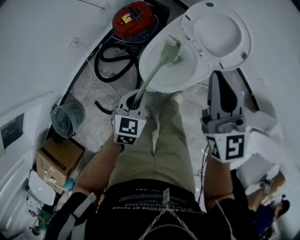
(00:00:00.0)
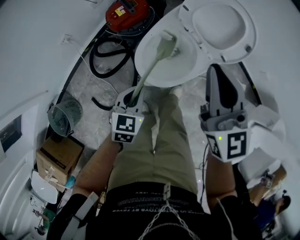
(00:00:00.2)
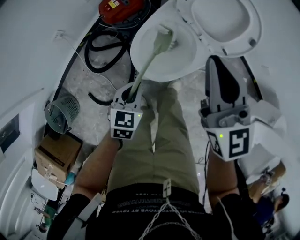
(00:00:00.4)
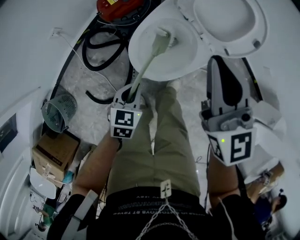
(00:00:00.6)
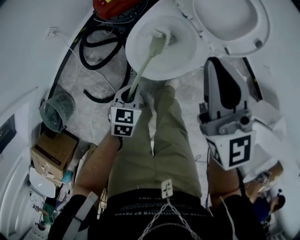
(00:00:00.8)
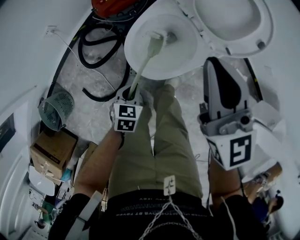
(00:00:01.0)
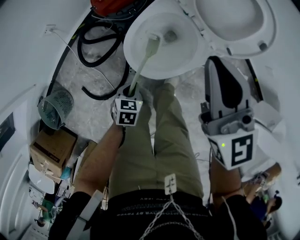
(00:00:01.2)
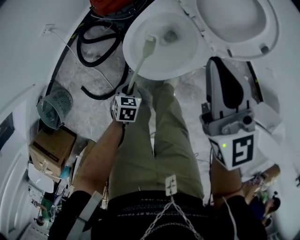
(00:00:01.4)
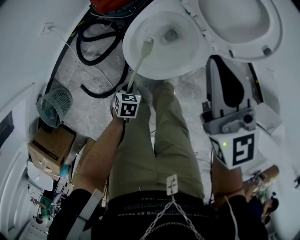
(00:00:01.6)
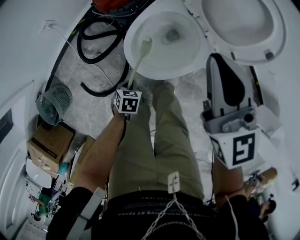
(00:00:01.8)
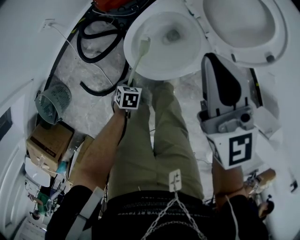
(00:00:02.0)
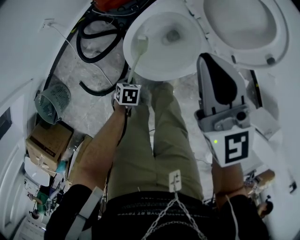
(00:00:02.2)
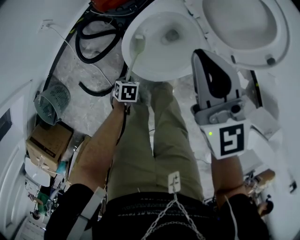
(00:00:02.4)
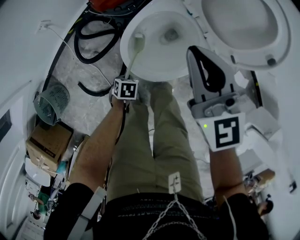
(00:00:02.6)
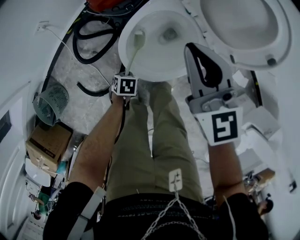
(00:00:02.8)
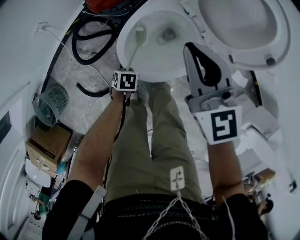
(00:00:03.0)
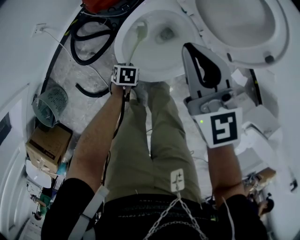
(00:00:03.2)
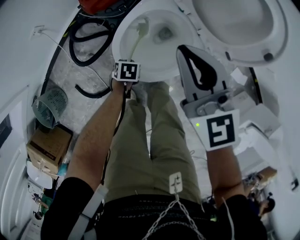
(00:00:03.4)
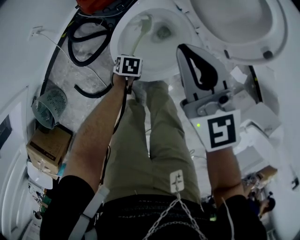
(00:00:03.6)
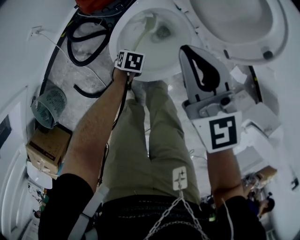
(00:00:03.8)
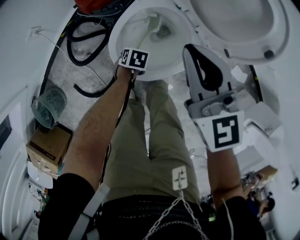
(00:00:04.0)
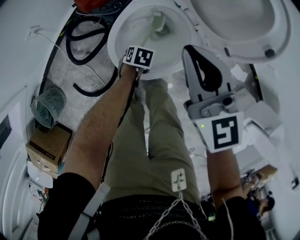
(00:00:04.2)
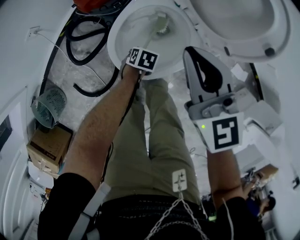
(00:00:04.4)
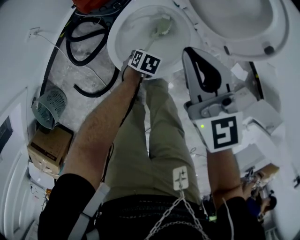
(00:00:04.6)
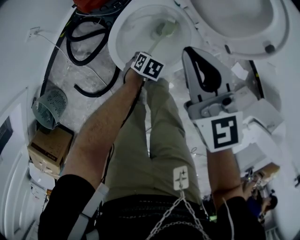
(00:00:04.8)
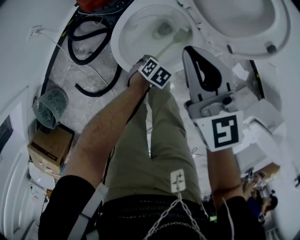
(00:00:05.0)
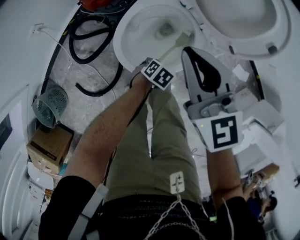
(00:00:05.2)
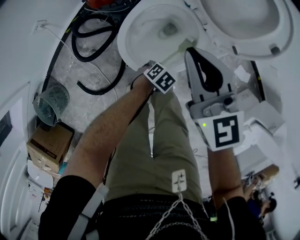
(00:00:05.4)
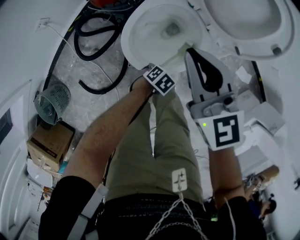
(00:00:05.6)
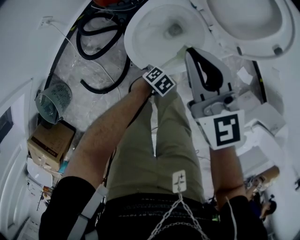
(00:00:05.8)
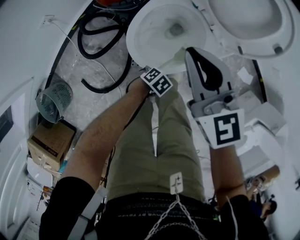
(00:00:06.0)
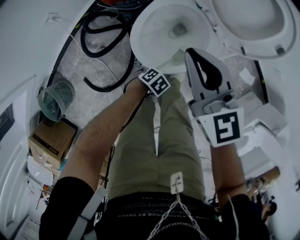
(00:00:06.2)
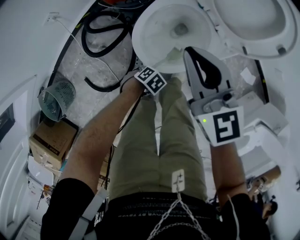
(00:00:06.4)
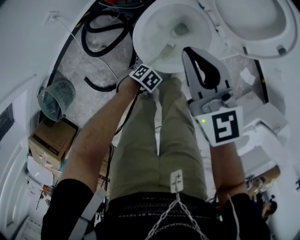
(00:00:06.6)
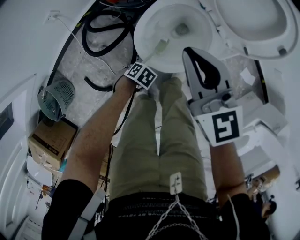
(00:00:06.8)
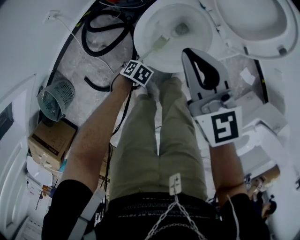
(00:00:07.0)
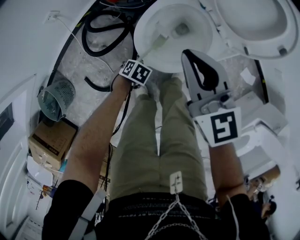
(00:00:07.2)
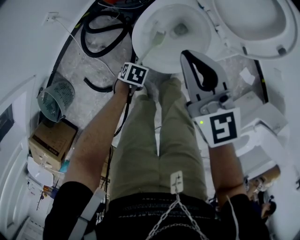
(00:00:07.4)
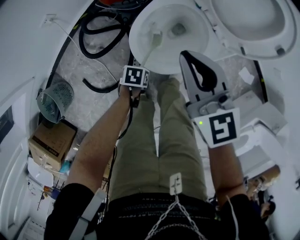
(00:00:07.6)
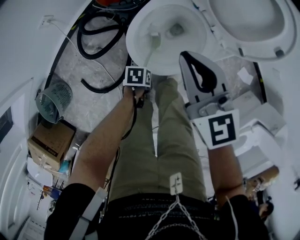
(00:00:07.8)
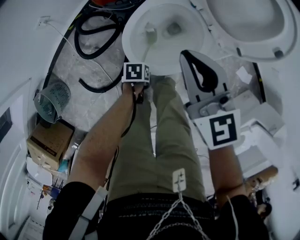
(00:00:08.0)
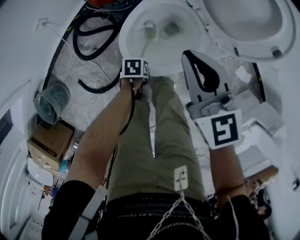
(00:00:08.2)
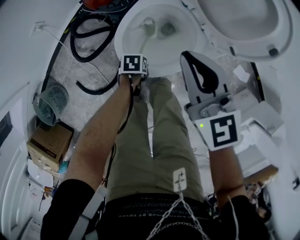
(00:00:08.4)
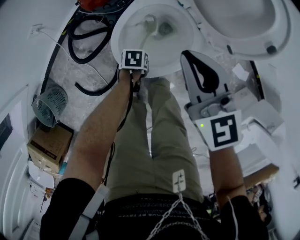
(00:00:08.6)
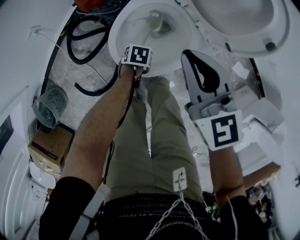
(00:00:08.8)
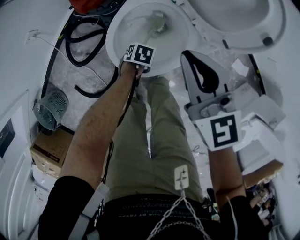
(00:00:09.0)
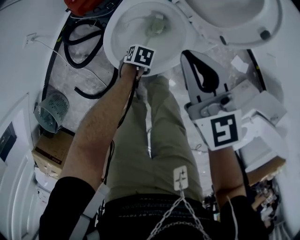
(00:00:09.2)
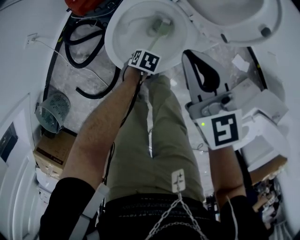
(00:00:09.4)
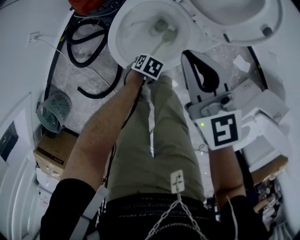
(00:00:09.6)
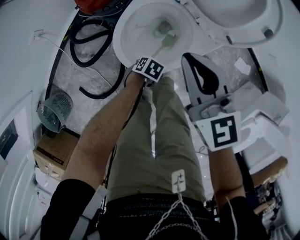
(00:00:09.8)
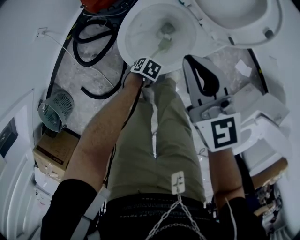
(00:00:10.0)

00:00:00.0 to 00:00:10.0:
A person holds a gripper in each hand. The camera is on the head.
00:00:00.0 to 00:00:01.4: The right gripper travels downward by roughly 10 cm; the left gripper is displaced downward by roughly 25 cm, and swivels some 30 degrees.
00:00:01.4 to 00:00:02.8: The grippers both shift downward by about 10 cm. The left gripper swivels about 20 degrees.
00:00:02.8 to 00:00:04.2: The left gripper ends up about 15 cm from where it was.
00:00:04.2 to 00:00:05.8: The right gripper moves approximately 5 cm, while the left gripper shifts by some 15 cm, and rotates about 30 degrees.
00:00:05.8 to 00:00:07.2: The right gripper moves some 5 cm, while the left gripper ends up roughly 15 cm from where it was.
00:00:07.2 to 00:00:08.6: The right gripper shifts by roughly 10 cm, while the left gripper changes place by roughly 15 cm, and swivels some 30 degrees.
00:00:08.6 to 00:00:10.0: The left gripper moves approximately 5 cm, and changes its angle by some 30 degrees.

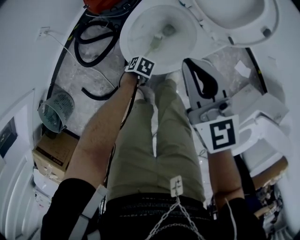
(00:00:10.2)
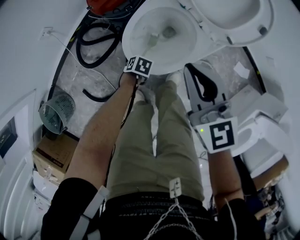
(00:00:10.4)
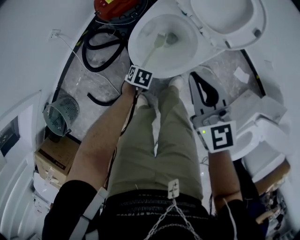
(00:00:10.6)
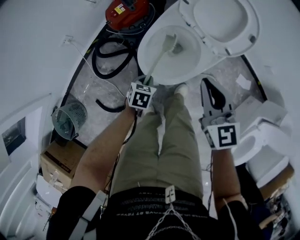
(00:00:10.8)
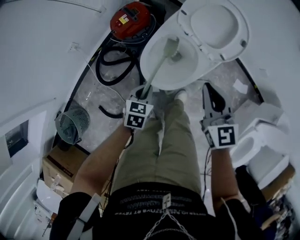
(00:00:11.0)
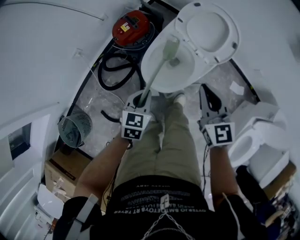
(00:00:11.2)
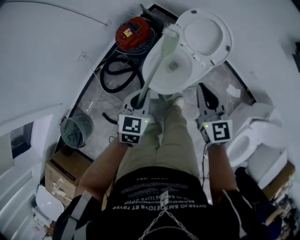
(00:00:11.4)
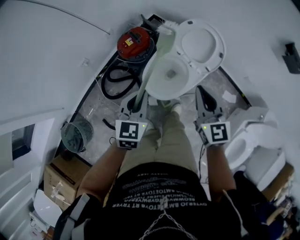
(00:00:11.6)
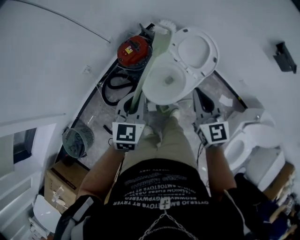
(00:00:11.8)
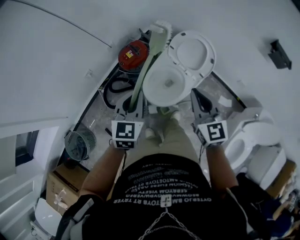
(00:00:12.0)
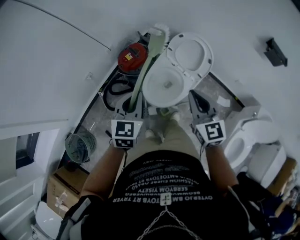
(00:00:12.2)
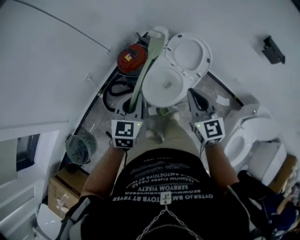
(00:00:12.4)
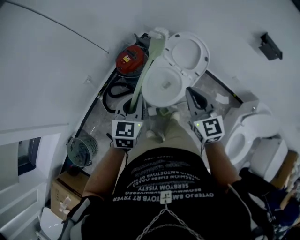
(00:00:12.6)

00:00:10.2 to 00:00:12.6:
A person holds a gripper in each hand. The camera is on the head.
00:00:10.2 to 00:00:11.4: The right gripper moves upward, some 15 cm. Meanwhile the left gripper moves upward, some 50 cm, and angles its fingers upward, by about 40 degrees.
00:00:11.4 to 00:00:12.6: Both grippers move upward, some 15 cm.

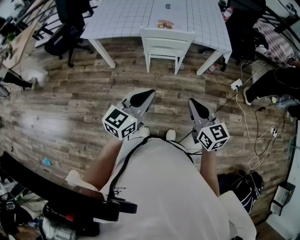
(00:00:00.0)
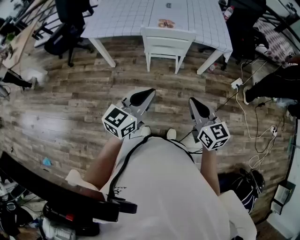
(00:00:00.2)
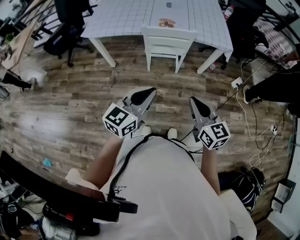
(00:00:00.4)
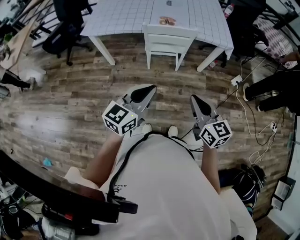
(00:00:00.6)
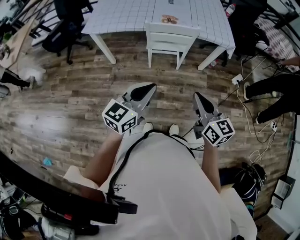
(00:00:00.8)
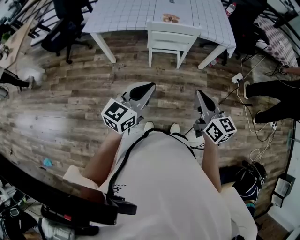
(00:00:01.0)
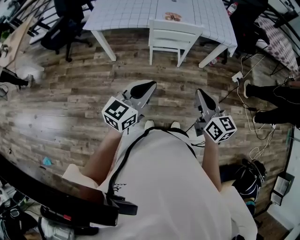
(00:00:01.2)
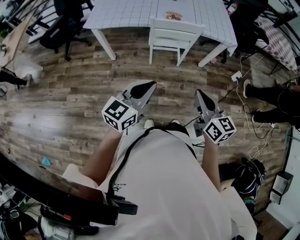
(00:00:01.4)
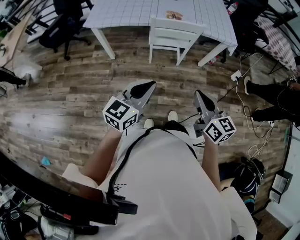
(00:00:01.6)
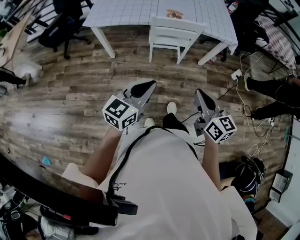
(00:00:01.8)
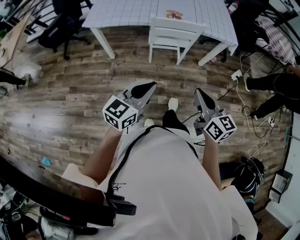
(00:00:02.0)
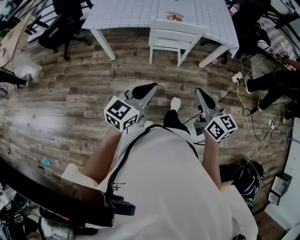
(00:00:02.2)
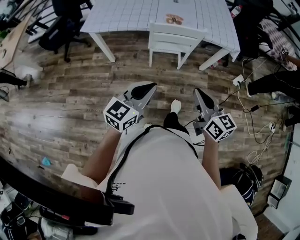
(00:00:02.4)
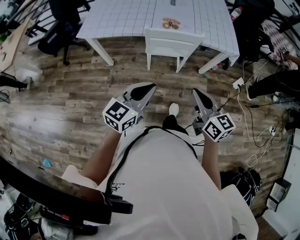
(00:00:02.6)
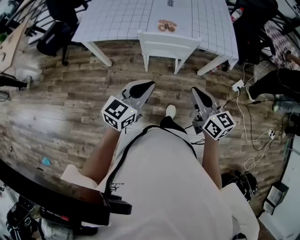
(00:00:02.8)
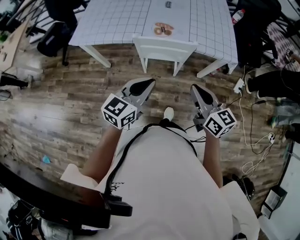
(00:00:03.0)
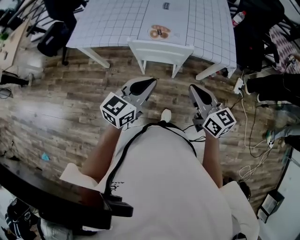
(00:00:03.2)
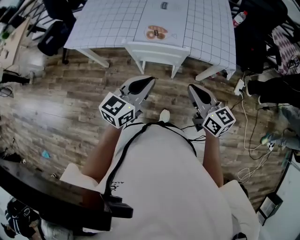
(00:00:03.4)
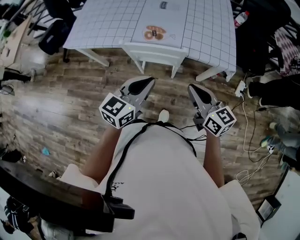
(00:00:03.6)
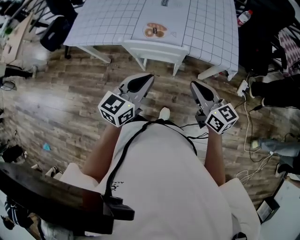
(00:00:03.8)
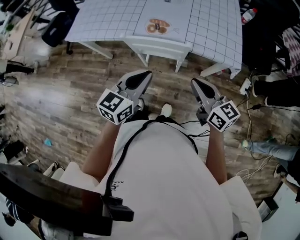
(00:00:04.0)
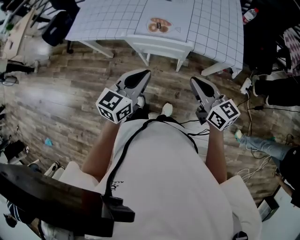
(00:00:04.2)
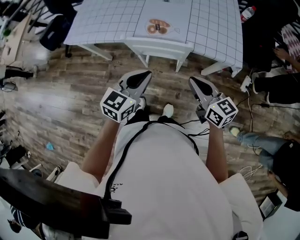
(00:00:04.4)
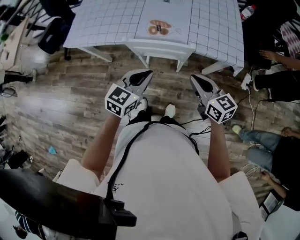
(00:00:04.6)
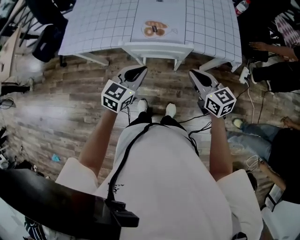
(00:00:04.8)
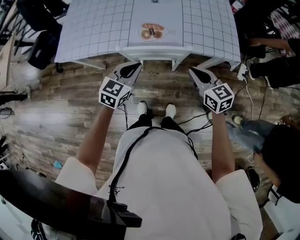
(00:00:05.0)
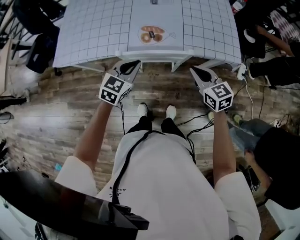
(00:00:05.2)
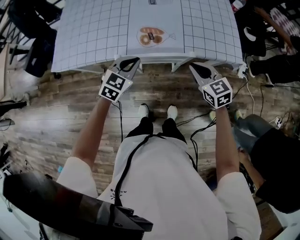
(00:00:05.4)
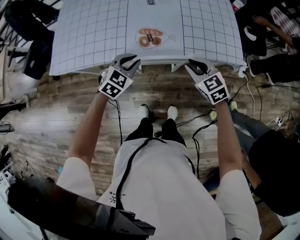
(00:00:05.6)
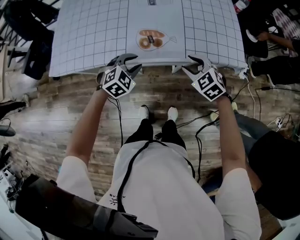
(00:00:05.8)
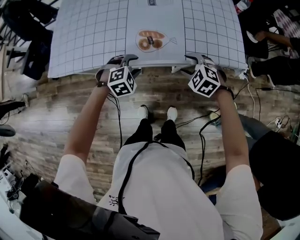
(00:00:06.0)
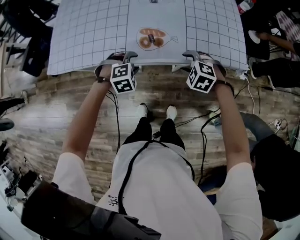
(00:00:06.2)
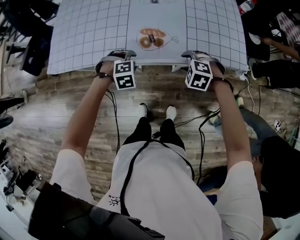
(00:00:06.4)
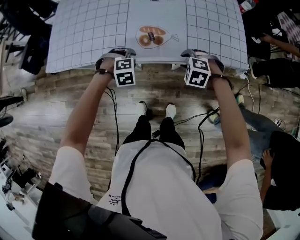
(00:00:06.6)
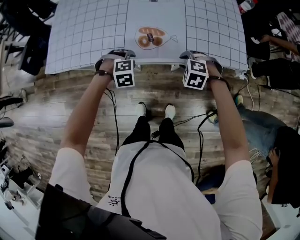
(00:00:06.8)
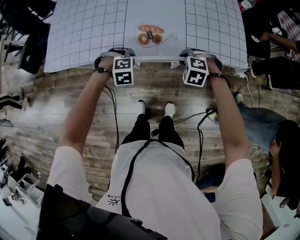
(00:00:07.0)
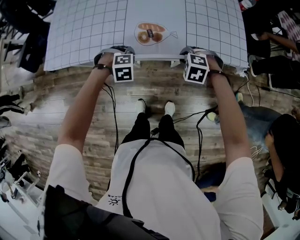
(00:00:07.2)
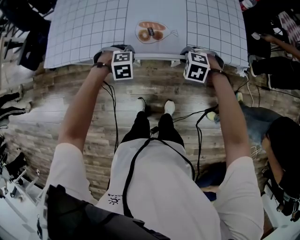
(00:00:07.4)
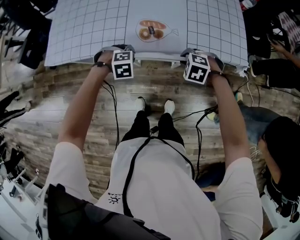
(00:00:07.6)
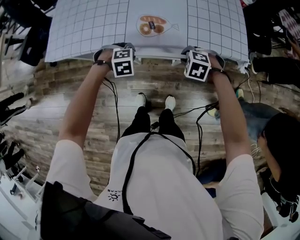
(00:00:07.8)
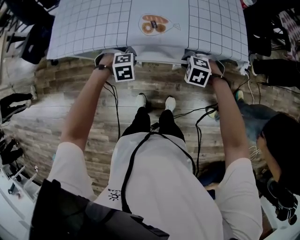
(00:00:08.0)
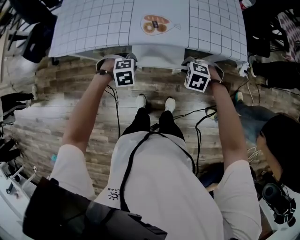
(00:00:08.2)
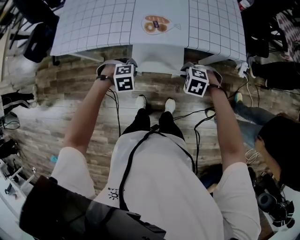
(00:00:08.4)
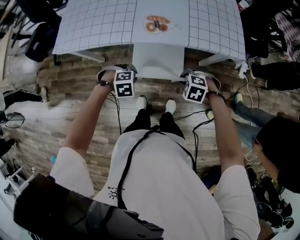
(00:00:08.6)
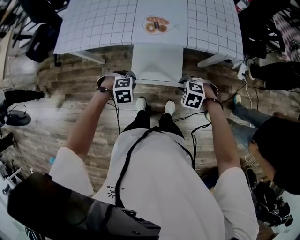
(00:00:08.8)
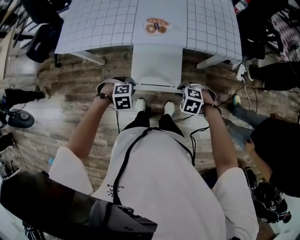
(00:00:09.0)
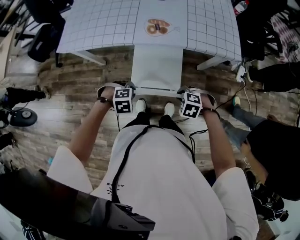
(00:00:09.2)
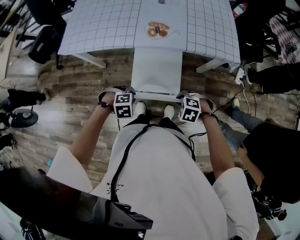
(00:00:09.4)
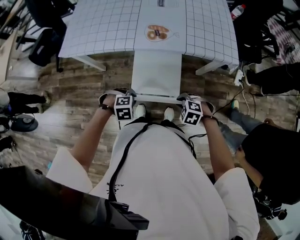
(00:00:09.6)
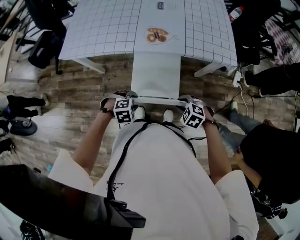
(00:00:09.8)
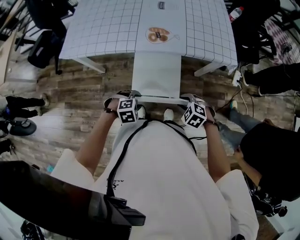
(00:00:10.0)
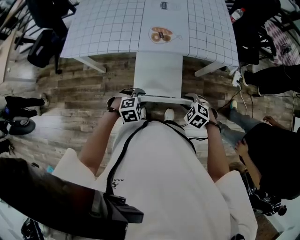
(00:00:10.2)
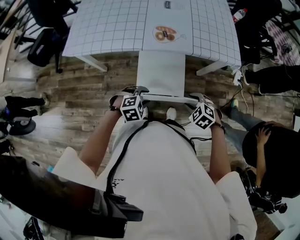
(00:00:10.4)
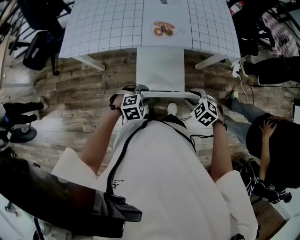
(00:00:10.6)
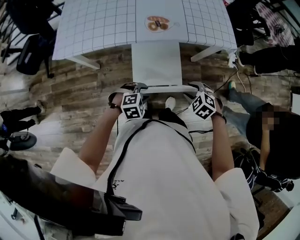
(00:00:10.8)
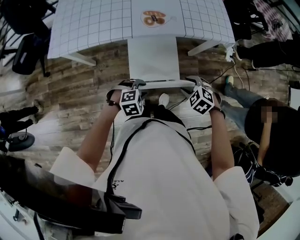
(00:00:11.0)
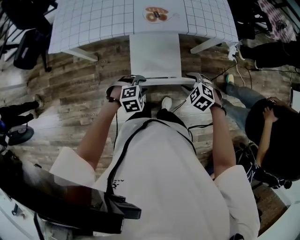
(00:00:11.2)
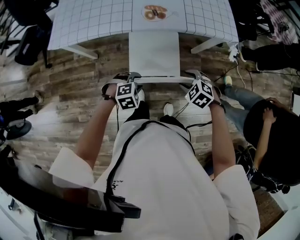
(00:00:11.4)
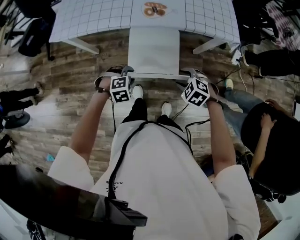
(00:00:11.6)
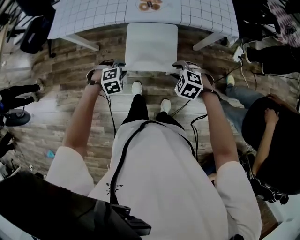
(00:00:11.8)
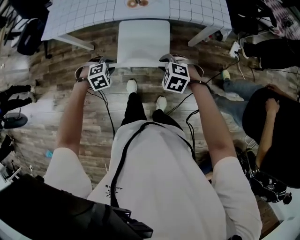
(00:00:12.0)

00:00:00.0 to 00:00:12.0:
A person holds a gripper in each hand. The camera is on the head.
00:00:00.0 to 00:00:01.6: The grippers both shift to the left by approximately 10 cm.
00:00:01.6 to 00:00:03.0: The right gripper shifts about 25 cm forward; the left gripper heads forward and to the right, covering some 25 cm.
00:00:03.0 to 00:00:04.4: The left gripper travels forward and to the right by roughly 10 cm. The right gripper goes about 15 cm forward, to the right and downward.
00:00:04.4 to 00:00:06.0: The left gripper goes about 30 cm forward, downward and to the left, angles its fingers downward, by about 40 degrees, and opens. Meanwhile the right gripper shifts roughly 25 cm forward and downward, points its fingers approximately 40 degrees further downward, and opens its fingers.
00:00:06.0 to 00:00:07.6: The left gripper changes place by roughly 5 cm, and closes. Meanwhile the right gripper travels downward by approximately 5 cm, and closes.
00:00:07.6 to 00:00:09.0: The right gripper shifts by about 25 cm. Meanwhile the left gripper changes place by some 25 cm.
00:00:09.0 to 00:00:10.4: The left gripper opens up; the right gripper moves some 5 cm, changes its angle by about 20 degrees, and opens.
00:00:10.4 to 00:00:12.0: The left gripper is displaced downward by roughly 5 cm.
